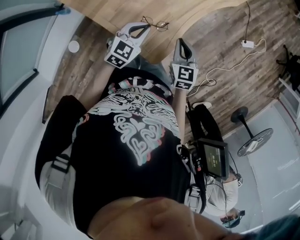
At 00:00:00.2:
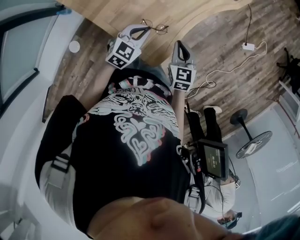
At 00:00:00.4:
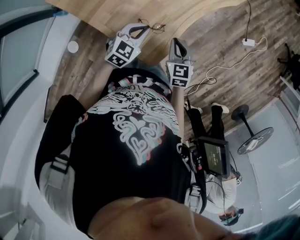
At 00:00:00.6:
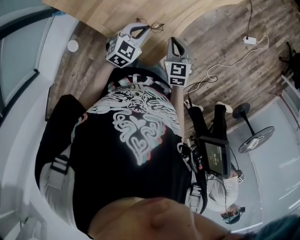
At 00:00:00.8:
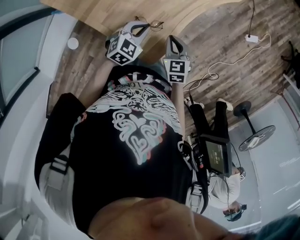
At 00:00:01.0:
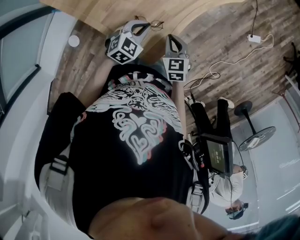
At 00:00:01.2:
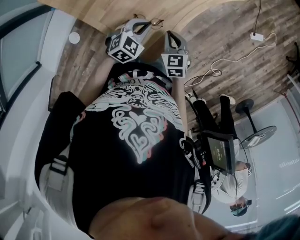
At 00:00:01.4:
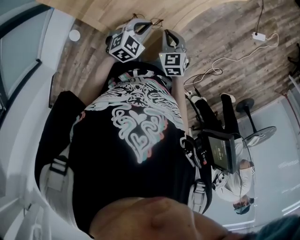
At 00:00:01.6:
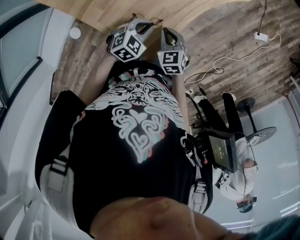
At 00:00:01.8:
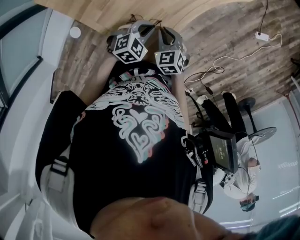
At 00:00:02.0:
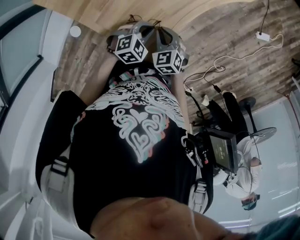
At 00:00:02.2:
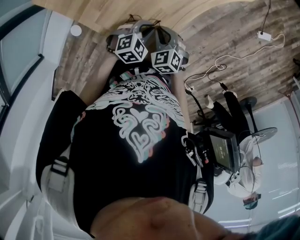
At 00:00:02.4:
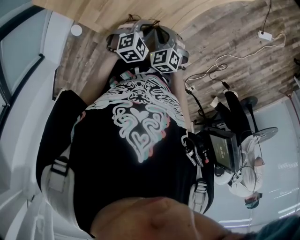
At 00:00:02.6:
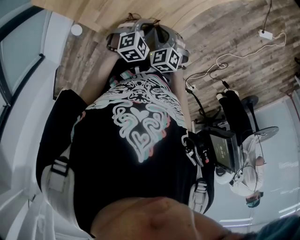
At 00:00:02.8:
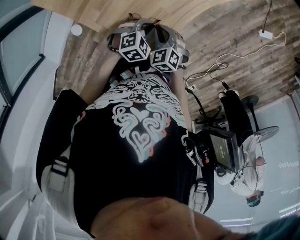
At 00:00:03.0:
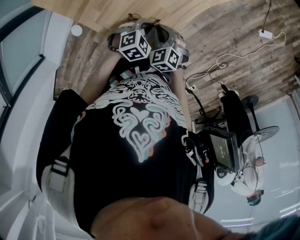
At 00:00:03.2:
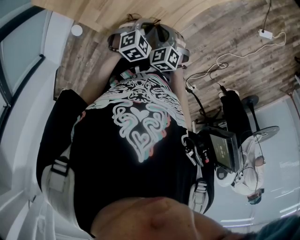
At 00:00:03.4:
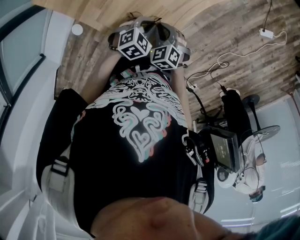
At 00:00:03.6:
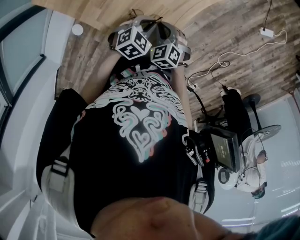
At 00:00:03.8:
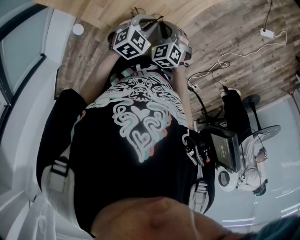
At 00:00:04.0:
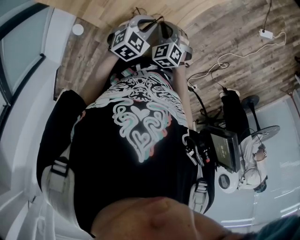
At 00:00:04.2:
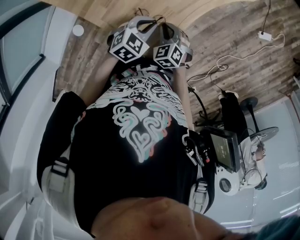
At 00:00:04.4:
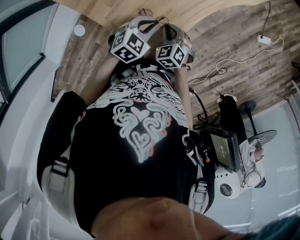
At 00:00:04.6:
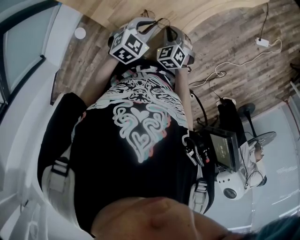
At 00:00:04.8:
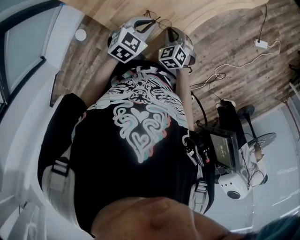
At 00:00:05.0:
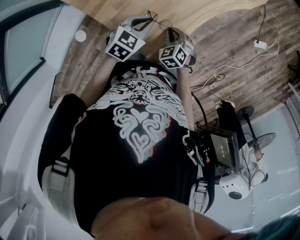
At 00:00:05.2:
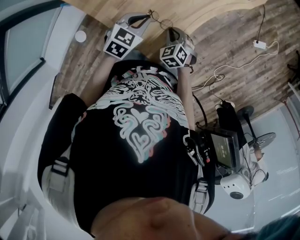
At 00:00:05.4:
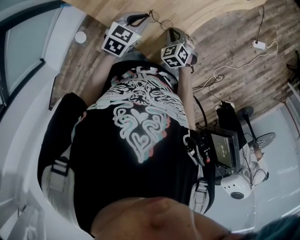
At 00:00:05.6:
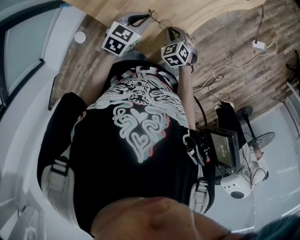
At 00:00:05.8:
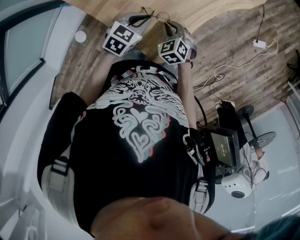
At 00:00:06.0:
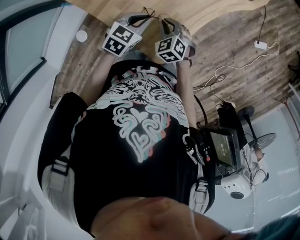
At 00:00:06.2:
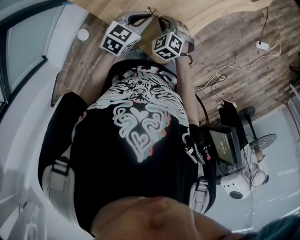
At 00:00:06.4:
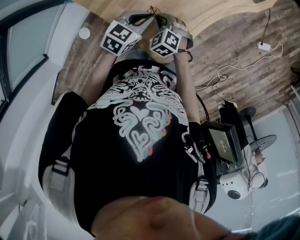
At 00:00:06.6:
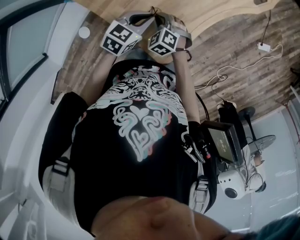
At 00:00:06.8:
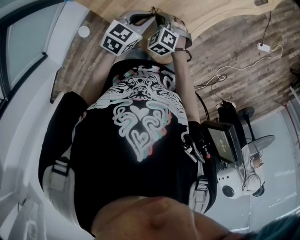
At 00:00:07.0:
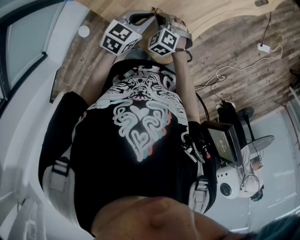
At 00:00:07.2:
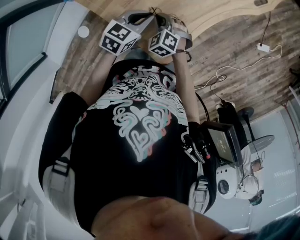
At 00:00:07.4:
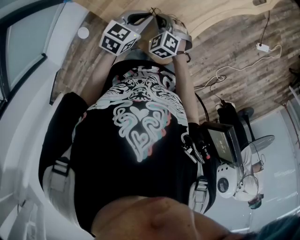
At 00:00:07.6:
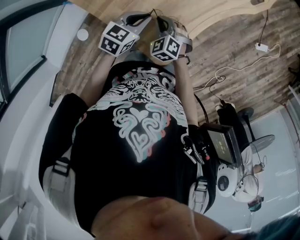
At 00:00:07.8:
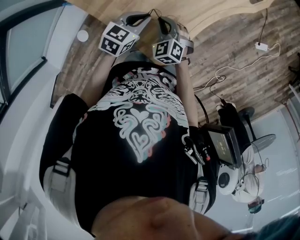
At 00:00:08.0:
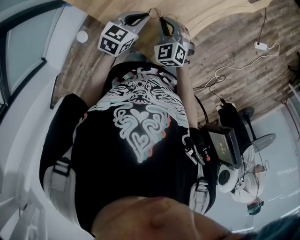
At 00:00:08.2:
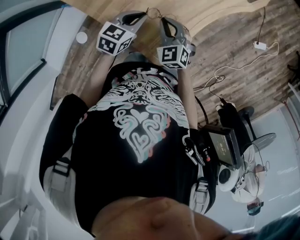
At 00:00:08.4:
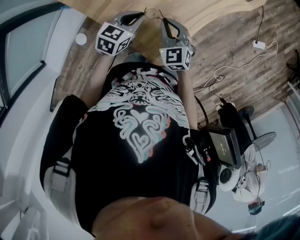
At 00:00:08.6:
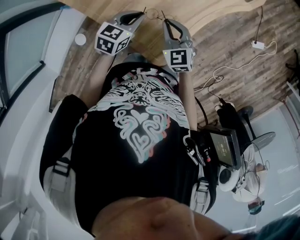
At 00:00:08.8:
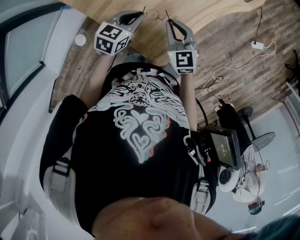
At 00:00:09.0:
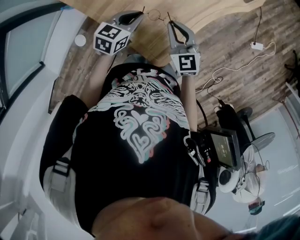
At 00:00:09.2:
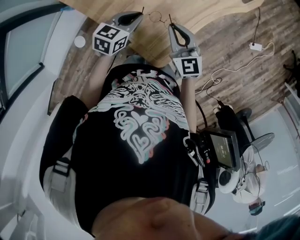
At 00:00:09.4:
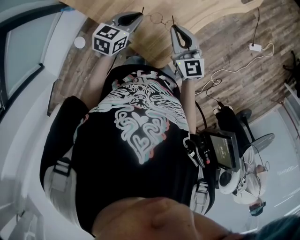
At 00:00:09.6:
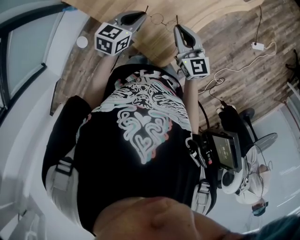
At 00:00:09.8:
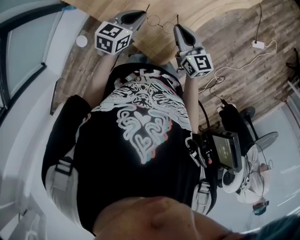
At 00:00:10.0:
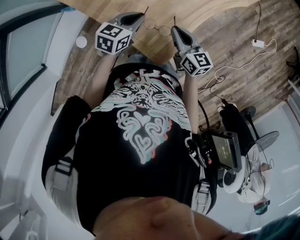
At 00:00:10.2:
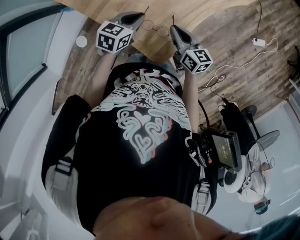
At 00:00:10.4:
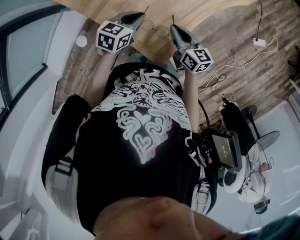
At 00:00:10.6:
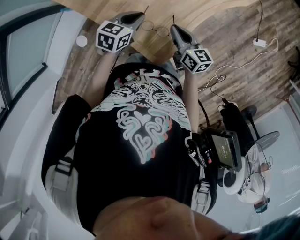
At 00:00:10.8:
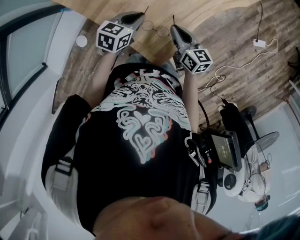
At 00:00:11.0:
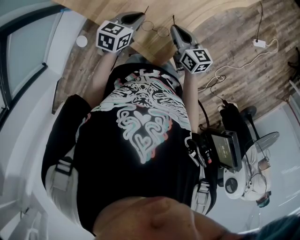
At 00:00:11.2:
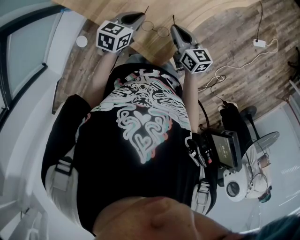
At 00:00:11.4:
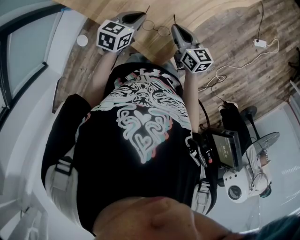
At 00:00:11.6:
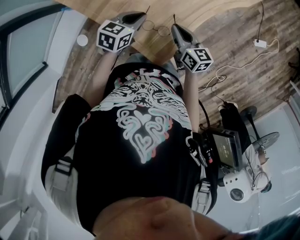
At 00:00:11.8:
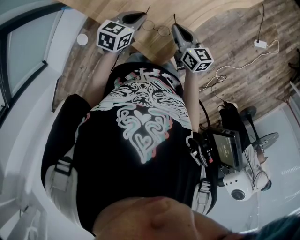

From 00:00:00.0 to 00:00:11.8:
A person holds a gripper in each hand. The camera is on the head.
From 00:00:00.0 to 00:00:01.4: The two grippers go roughly 10 cm downward.
From 00:00:01.4 to 00:00:03.0: The two grippers go about 5 cm downward. The right gripper turns by some 20 degrees.
From 00:00:03.0 to 00:00:04.4: The left gripper travels upward by some 10 cm.
From 00:00:04.4 to 00:00:06.0: The right gripper is displaced upward and to the left by roughly 10 cm. The left gripper shifts roughly 10 cm to the left and upward.
From 00:00:06.0 to 00:00:07.4: The right gripper moves to the left, about 5 cm.
From 00:00:07.4 to 00:00:08.8: The right gripper moves upward and to the right, approximately 15 cm, and swivels about 40 degrees.
From 00:00:08.8 to 00:00:10.4: The right gripper shifts by some 5 cm, and changes its angle by some 40 degrees.
From 00:00:10.4 to 00:00:11.8: Both grippers stay put.

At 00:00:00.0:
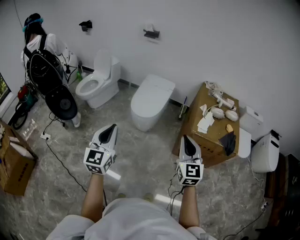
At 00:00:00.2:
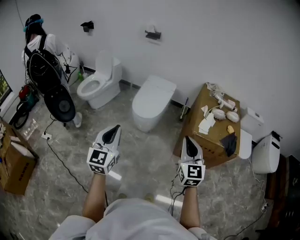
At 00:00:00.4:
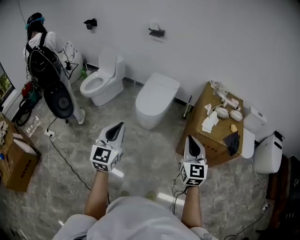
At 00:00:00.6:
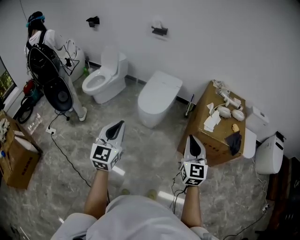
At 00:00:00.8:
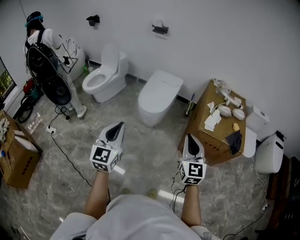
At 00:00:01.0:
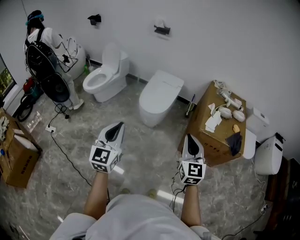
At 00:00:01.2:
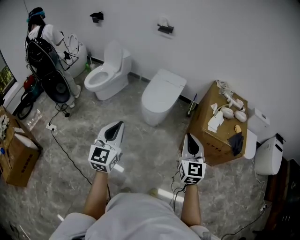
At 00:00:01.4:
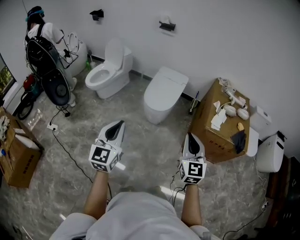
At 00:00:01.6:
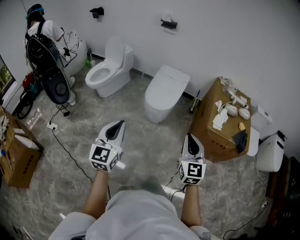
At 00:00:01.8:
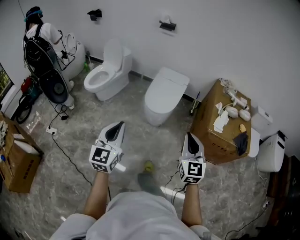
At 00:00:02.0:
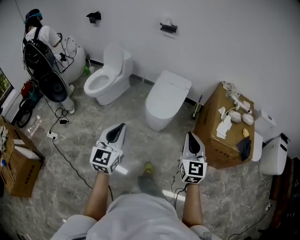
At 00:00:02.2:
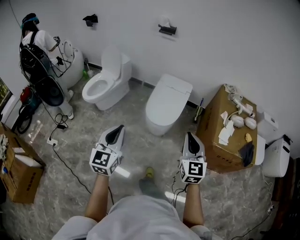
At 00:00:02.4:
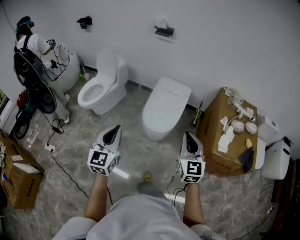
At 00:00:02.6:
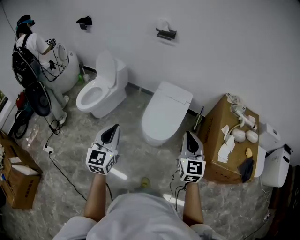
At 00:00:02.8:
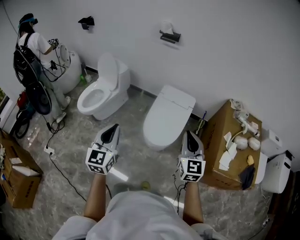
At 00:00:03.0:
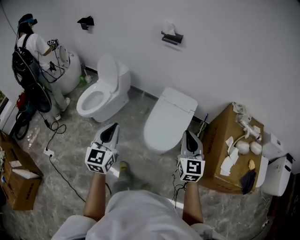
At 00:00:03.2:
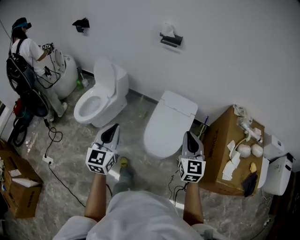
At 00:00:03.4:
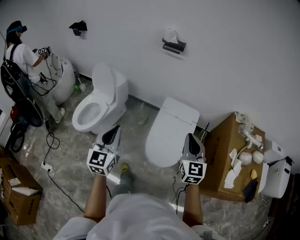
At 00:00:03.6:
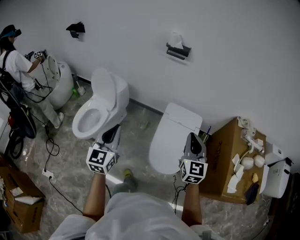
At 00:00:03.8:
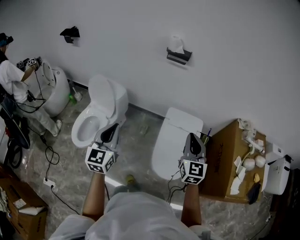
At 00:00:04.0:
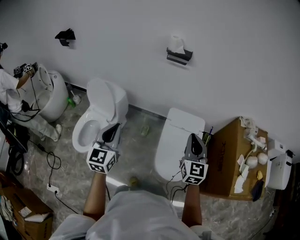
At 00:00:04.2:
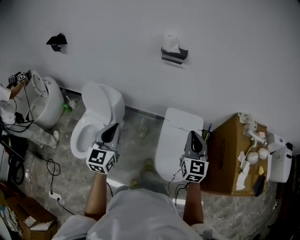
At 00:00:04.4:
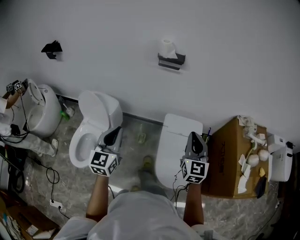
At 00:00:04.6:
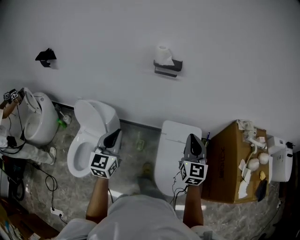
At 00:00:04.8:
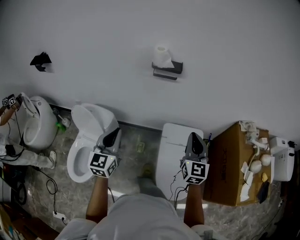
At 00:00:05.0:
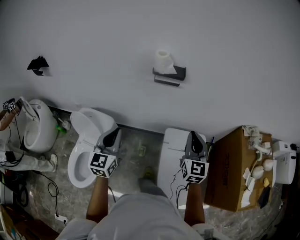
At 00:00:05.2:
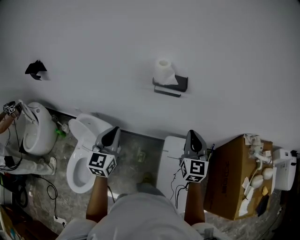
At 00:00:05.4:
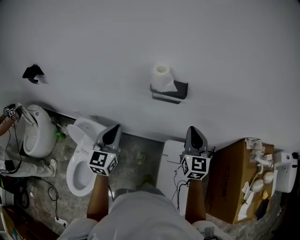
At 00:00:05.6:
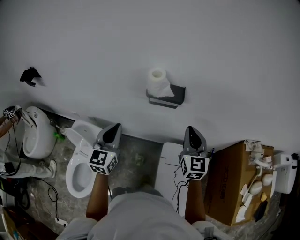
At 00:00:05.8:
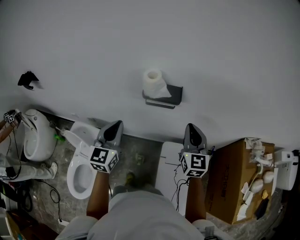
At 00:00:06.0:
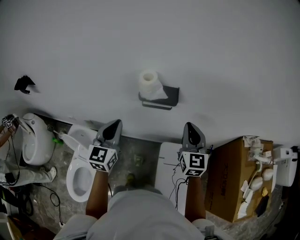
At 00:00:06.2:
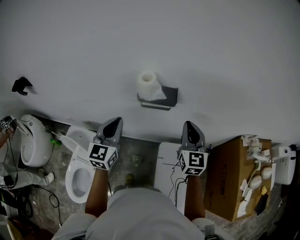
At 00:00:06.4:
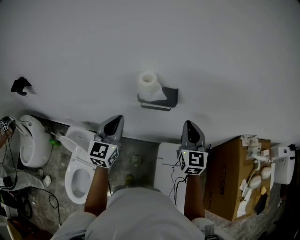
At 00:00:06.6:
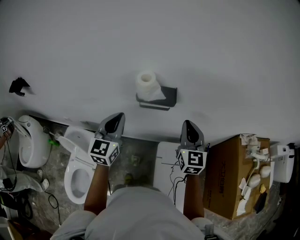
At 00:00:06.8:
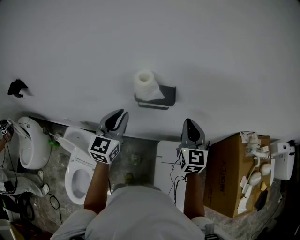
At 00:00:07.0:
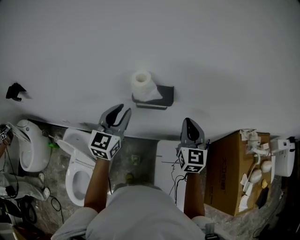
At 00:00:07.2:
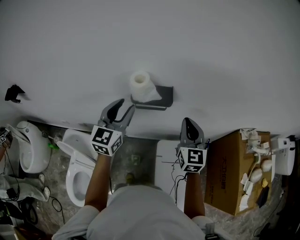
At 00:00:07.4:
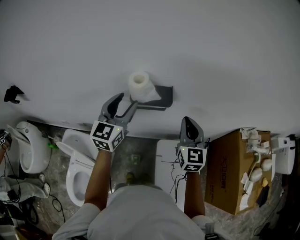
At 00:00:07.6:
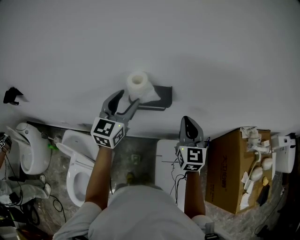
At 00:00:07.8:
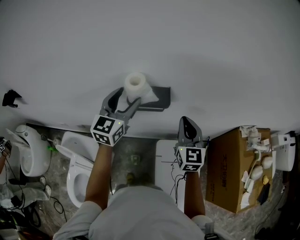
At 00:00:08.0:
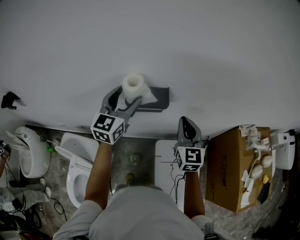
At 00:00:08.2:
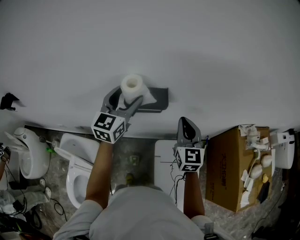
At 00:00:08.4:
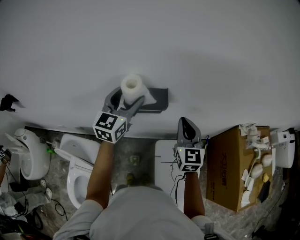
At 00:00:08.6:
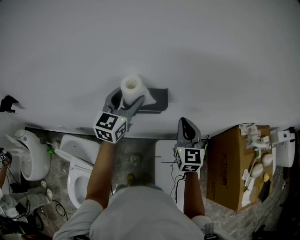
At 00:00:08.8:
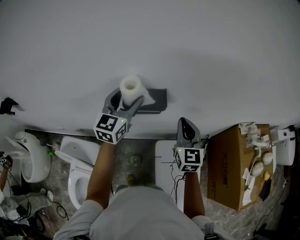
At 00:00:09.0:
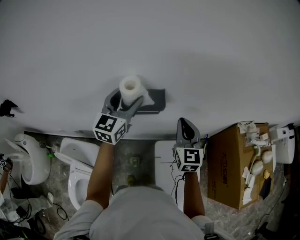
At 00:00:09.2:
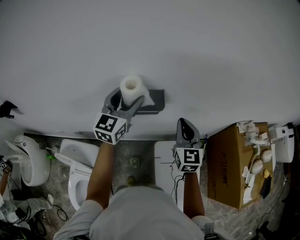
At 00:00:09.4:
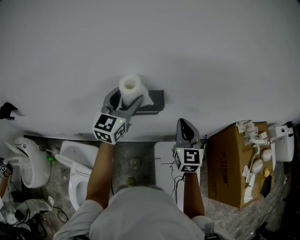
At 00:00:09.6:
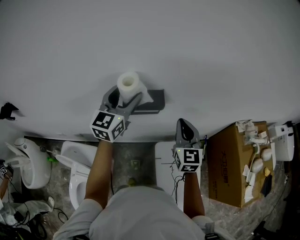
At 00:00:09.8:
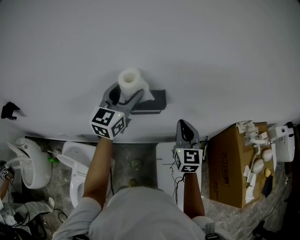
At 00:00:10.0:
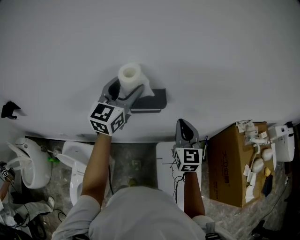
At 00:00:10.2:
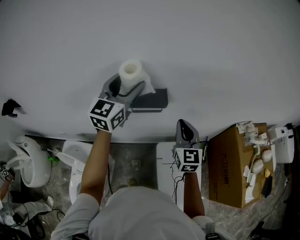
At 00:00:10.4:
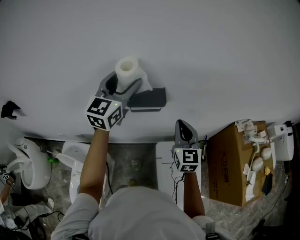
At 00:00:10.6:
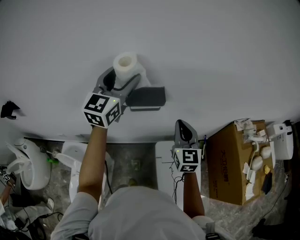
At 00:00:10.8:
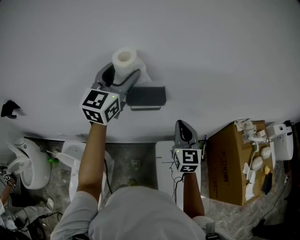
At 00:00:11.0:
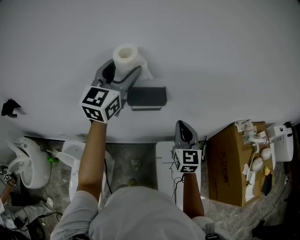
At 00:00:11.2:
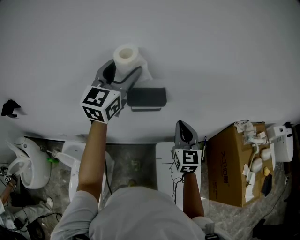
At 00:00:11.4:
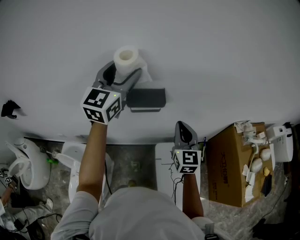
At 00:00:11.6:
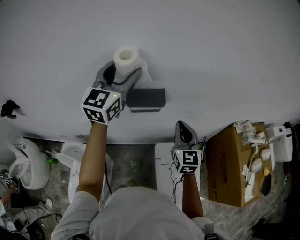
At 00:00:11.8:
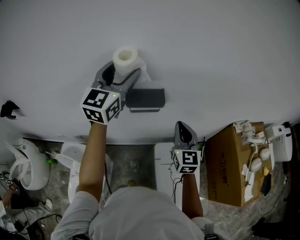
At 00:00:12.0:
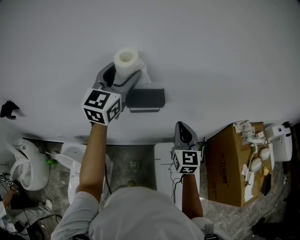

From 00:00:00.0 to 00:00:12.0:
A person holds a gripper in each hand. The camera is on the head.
From 00:00:00.0 to 00:00:01.6: The grippers both shift to the left by approximately 10 cm.
From 00:00:01.6 to 00:00:03.0: The two grippers travel together, forward, approximately 50 cm.
From 00:00:03.0 to 00:00:04.4: The grippers both shift forward and to the left by some 40 cm.
From 00:00:04.4 to 00:00:06.0: The grippers both shift forward by roughly 40 cm.
From 00:00:06.0 to 00:00:07.6: The left gripper travels forward by some 15 cm, and opens its fingers.
From 00:00:07.6 to 00:00:09.0: The grippers make only small movements.
From 00:00:09.0 to 00:00:10.4: The left gripper moves upward, approximately 10 cm.
From 00:00:10.4 to 00:00:12.0: There are only small adjustments of the grippers.
